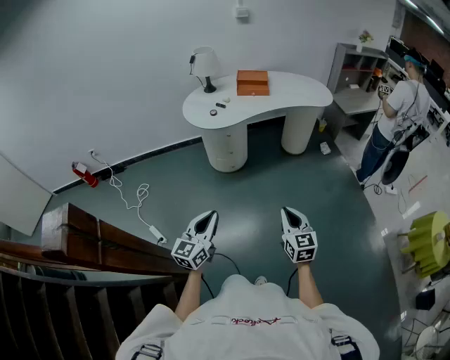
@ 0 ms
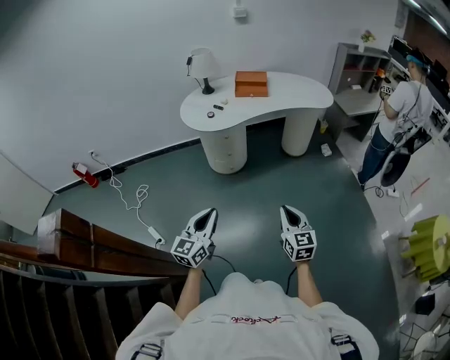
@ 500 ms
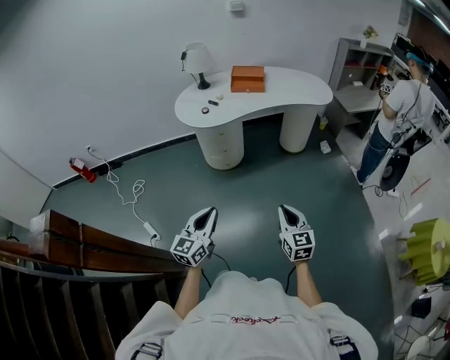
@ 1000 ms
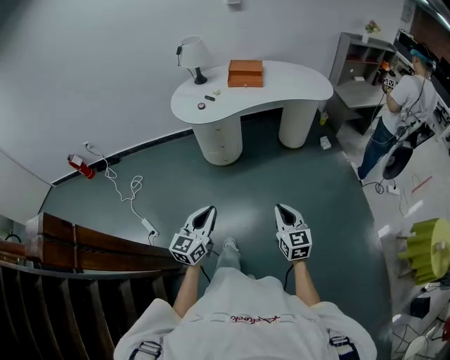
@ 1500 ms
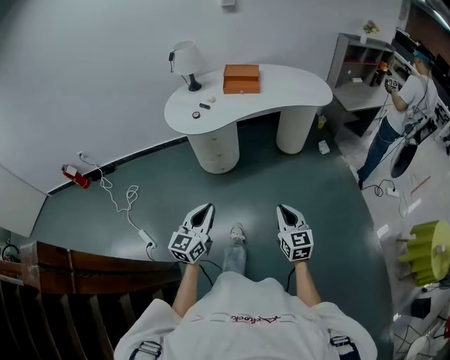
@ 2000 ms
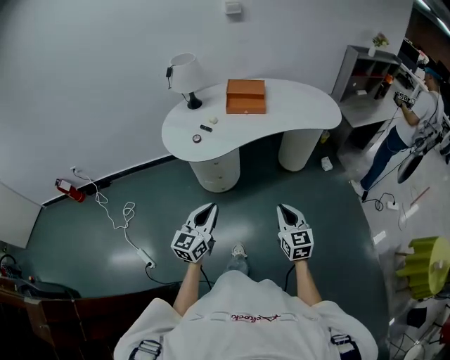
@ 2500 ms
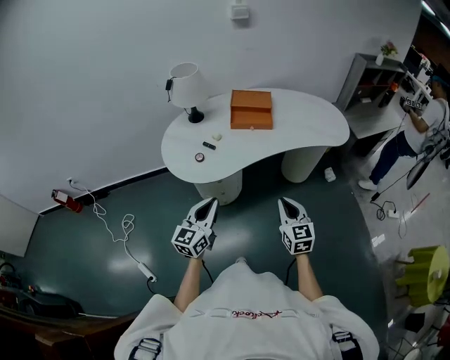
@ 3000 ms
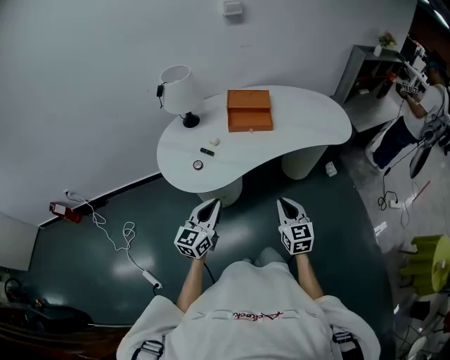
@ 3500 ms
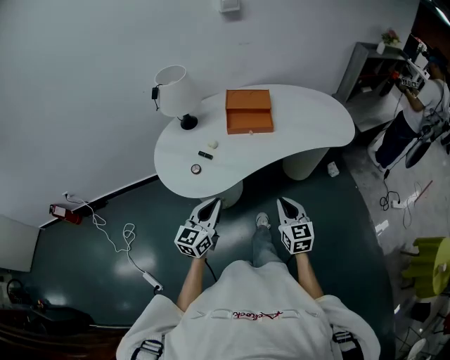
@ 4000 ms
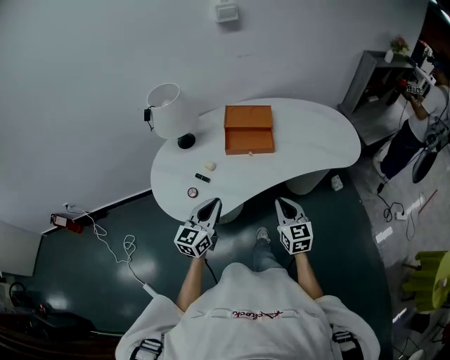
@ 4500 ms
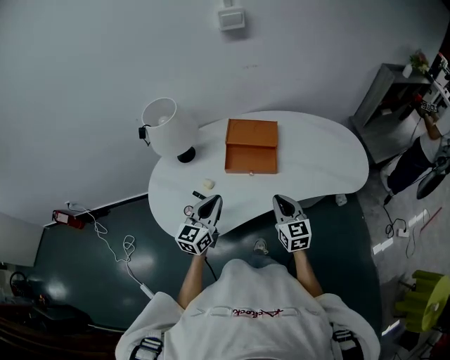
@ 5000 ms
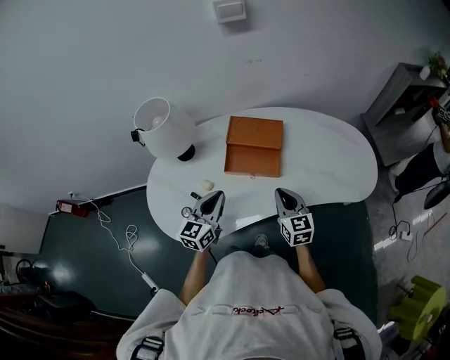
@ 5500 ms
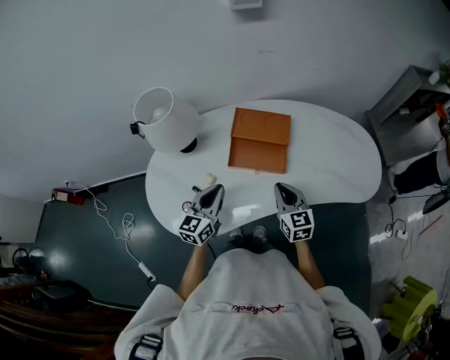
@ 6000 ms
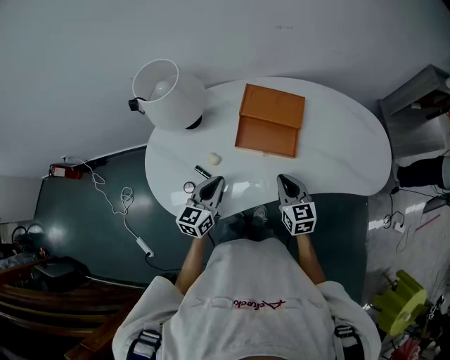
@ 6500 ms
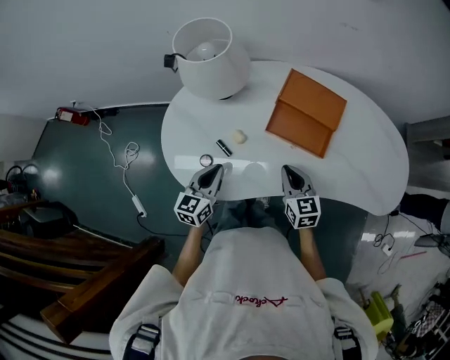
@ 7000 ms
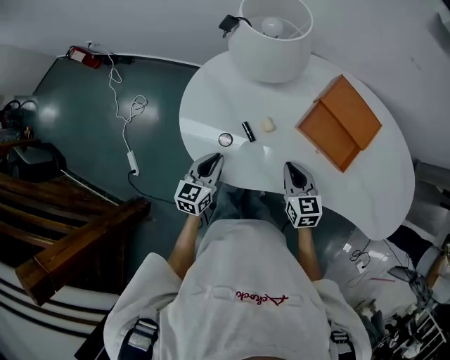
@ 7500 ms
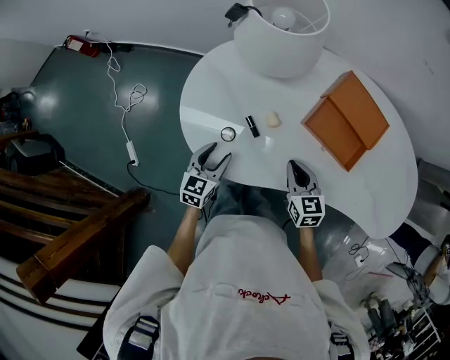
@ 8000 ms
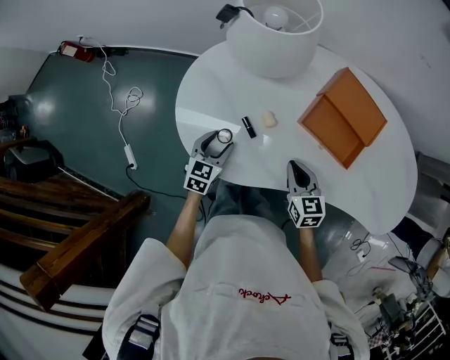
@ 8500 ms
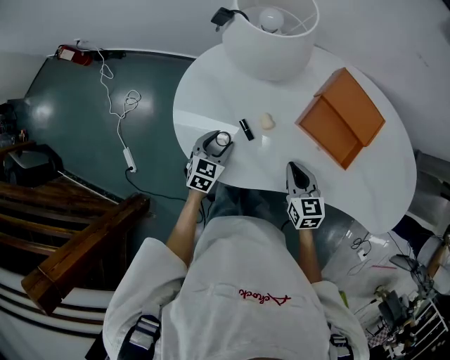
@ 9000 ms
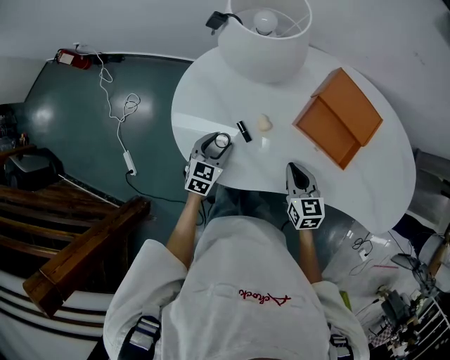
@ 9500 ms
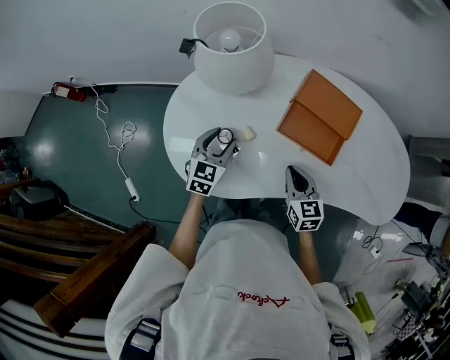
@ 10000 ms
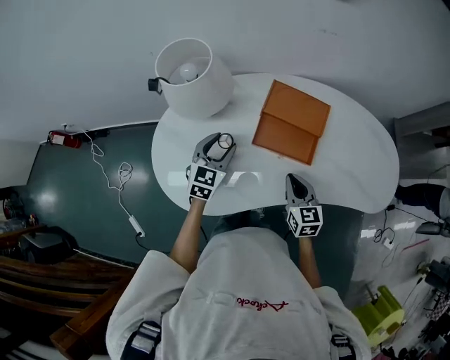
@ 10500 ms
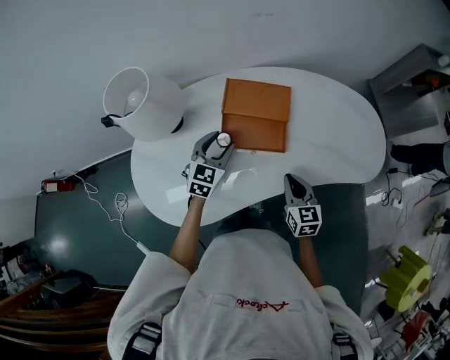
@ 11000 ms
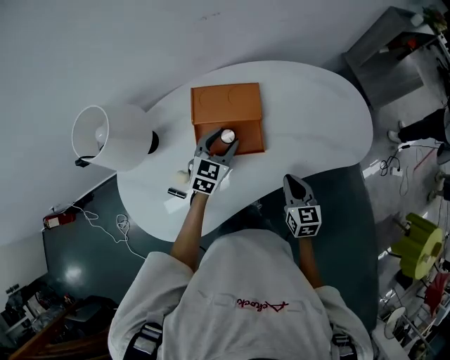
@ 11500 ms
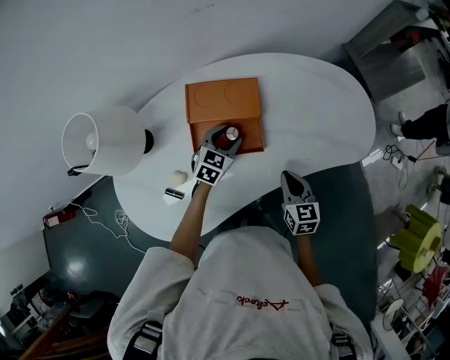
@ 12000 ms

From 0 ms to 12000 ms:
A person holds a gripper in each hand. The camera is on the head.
From 0 ms to 2000 ms: Both grippers move forward and to the right, approximately 15 cm.
From 2000 ms to 4000 ms: Both grippers are carried forward, some 40 cm.
From 4000 ms to 6000 ms: Both grippers move forward, about 30 cm.
From 6000 ms to 8000 ms: The left gripper moves about 25 cm, turns by approximately 30 degrees, and opens its fingers; the right gripper changes place by some 20 cm, and rotates about 30 degrees.
From 8000 ms to 10000 ms: The left gripper moves forward and to the right, roughly 15 cm, while the right gripper travels to the right by about 5 cm.
From 10000 ms to 12000 ms: The right gripper shifts by approximately 20 cm, and rotates roughly 30 degrees; the left gripper changes place by roughly 35 cm, and changes its angle by approximately 40 degrees.

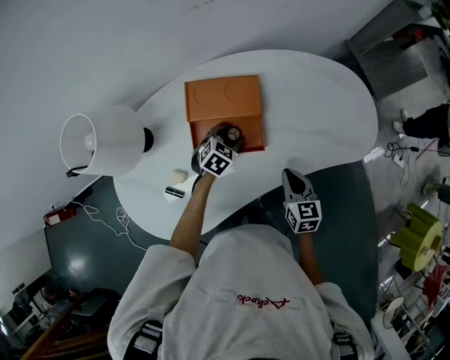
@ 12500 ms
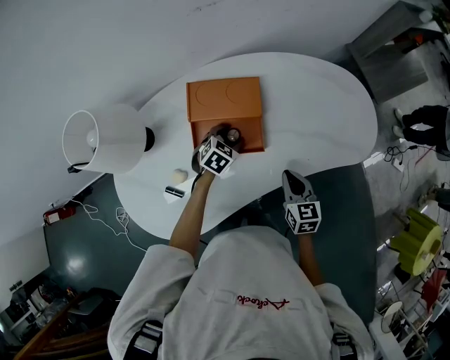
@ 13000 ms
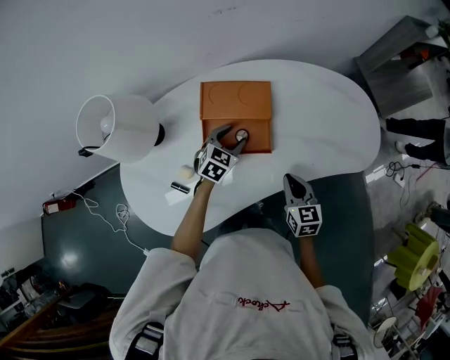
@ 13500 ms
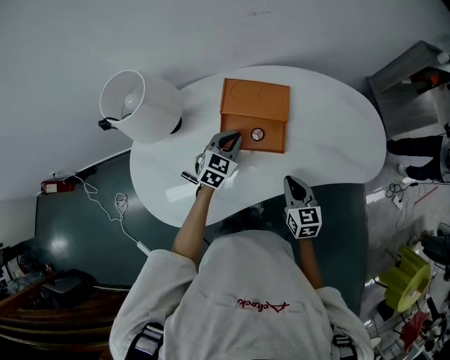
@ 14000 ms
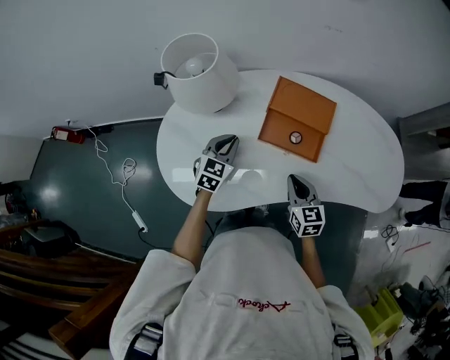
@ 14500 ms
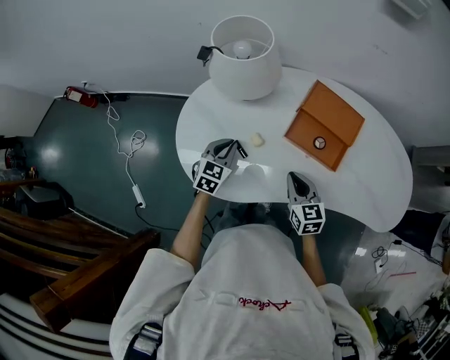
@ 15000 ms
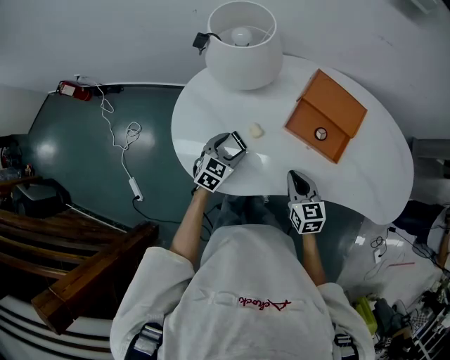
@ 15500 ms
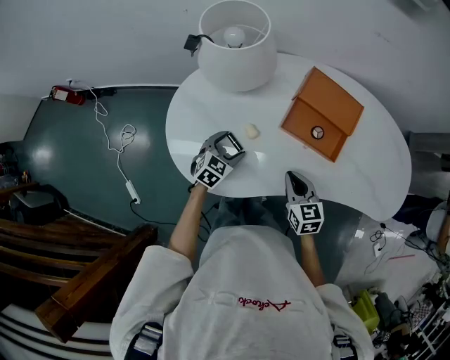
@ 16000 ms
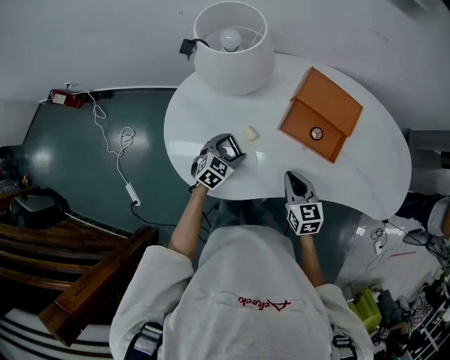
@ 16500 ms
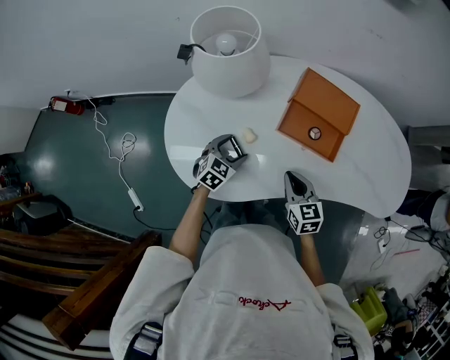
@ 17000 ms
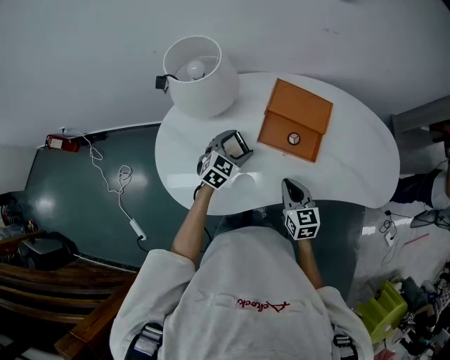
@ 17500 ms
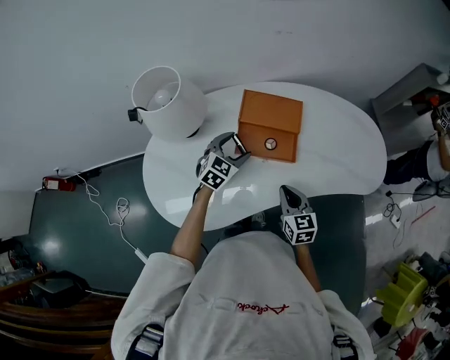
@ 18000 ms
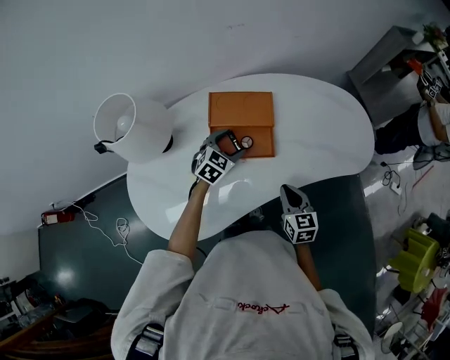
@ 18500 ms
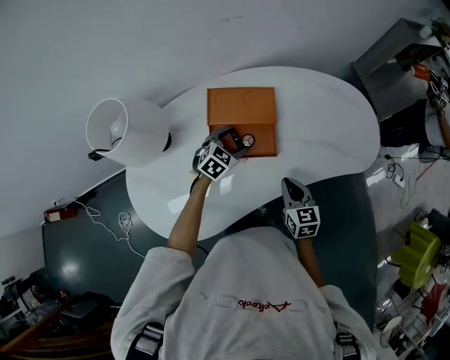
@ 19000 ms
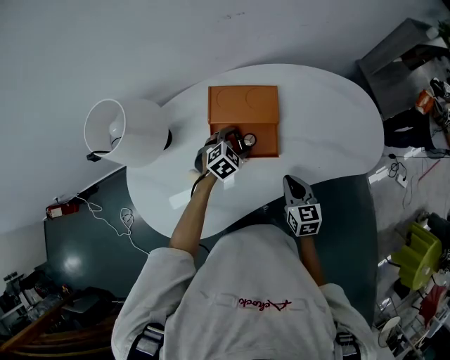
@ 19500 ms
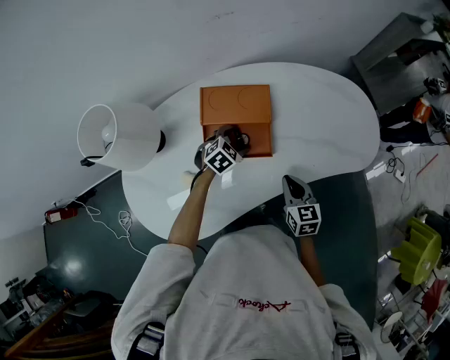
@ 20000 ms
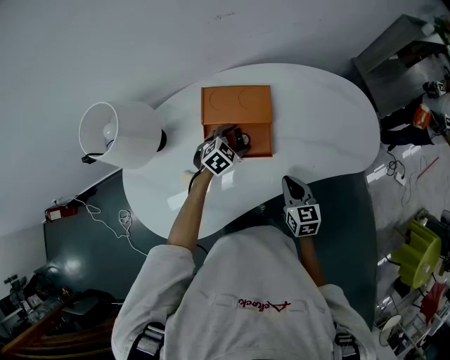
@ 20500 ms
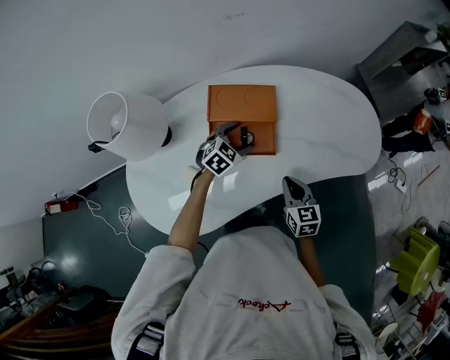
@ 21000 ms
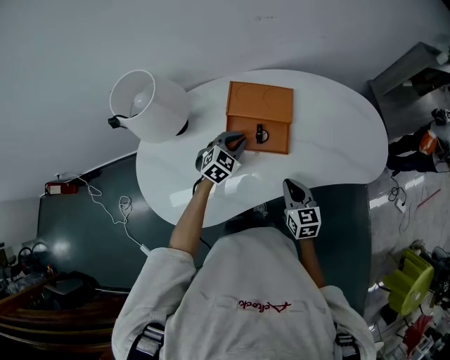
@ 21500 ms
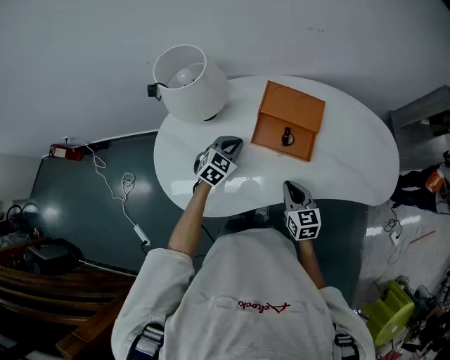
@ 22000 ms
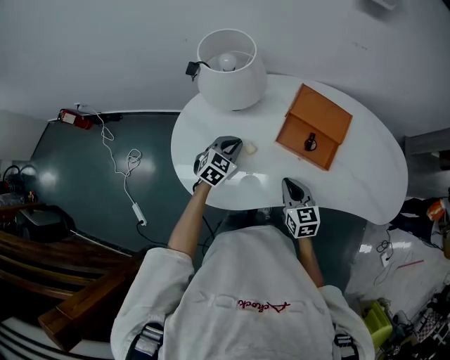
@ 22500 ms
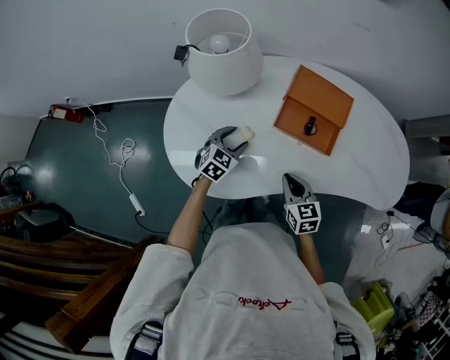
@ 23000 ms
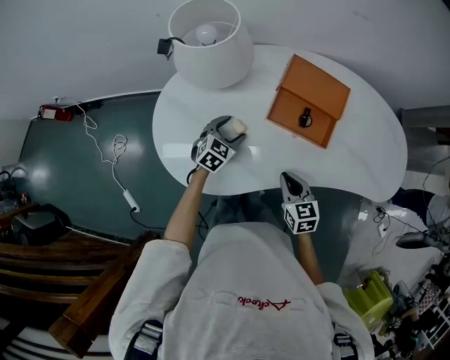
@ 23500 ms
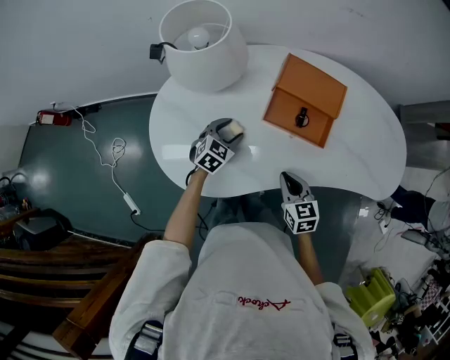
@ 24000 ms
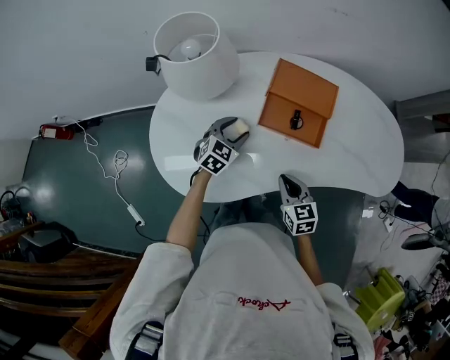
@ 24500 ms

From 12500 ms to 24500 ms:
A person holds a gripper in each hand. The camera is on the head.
From 12500 ms to 14500 ms: The left gripper shifts by roughly 25 cm, swivels approximately 40 degrees, and closes its fingers, while the right gripper moves about 15 cm, and rotates some 30 degrees.
From 14500 ms to 16500 ms: The right gripper heads to the left, covering some 5 cm, while the left gripper shifts roughly 15 cm downward, backward and to the left, and opens.
From 16500 ms to 18500 ms: The right gripper ends up roughly 15 cm from where it was, and rotates approximately 30 degrees. Meanwhile the left gripper changes place by about 30 cm, and turns by approximately 30 degrees.
From 18500 ms to 20500 ms: The left gripper is displaced downward by approximately 5 cm.
From 20500 ms to 22500 ms: The left gripper shifts by some 30 cm, changes its angle by some 40 degrees, and closes its fingers, while the right gripper shifts by roughly 20 cm, and swivels approximately 30 degrees.
From 22500 ms to 24500 ms: The left gripper is displaced to the right by approximately 5 cm, and opens. Meanwhile the right gripper moves roughly 5 cm.

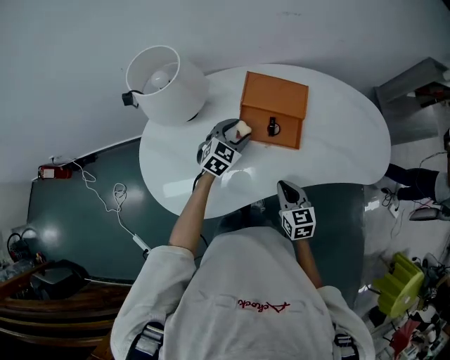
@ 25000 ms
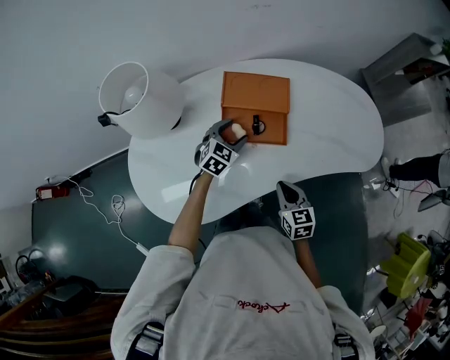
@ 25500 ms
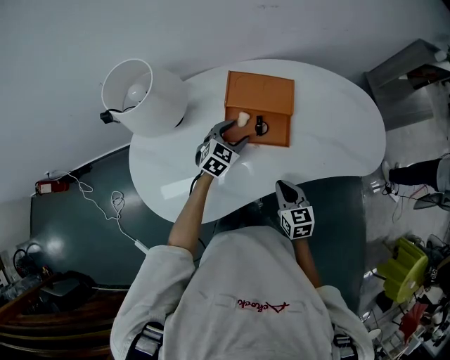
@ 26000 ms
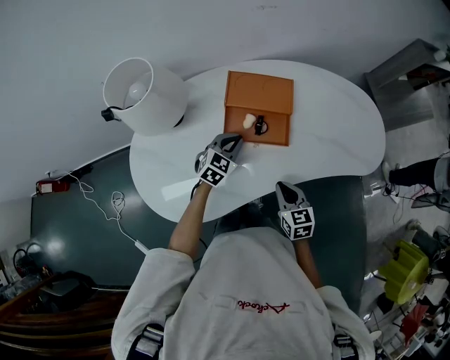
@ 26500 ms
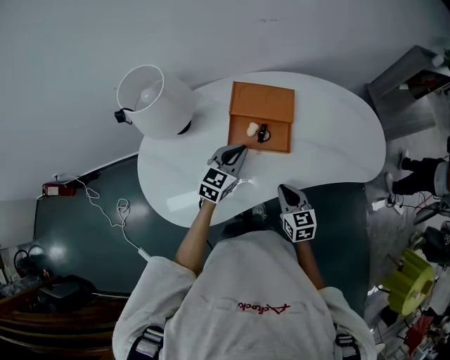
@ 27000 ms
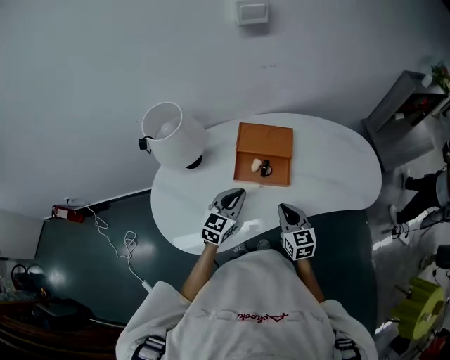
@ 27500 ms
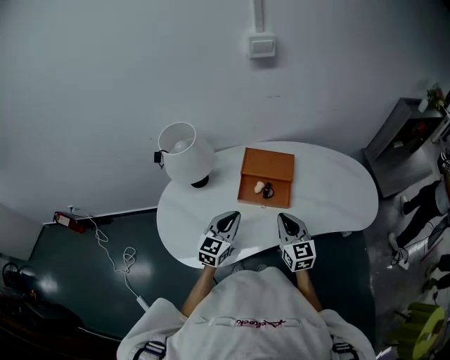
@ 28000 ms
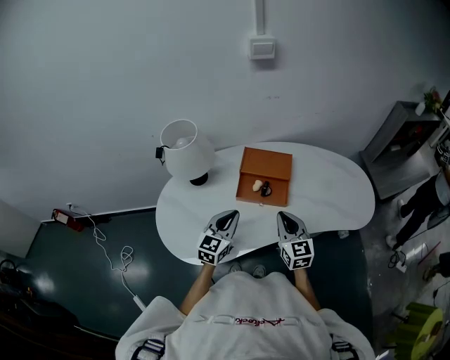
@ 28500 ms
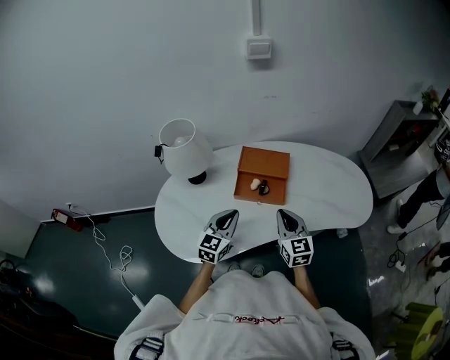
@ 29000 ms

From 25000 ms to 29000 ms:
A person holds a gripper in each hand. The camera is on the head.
From 25000 ms to 27000 ms: The left gripper shifts by some 10 cm, and closes its fingers.
From 27000 ms to 29000 ms: The left gripper heads backward and upward, covering some 15 cm. The right gripper travels upward by about 15 cm, and swivels about 20 degrees.
